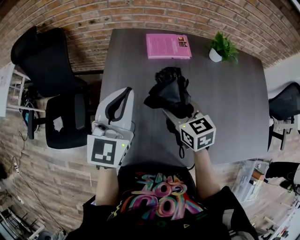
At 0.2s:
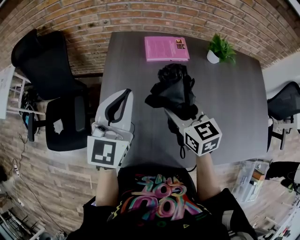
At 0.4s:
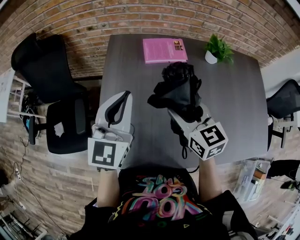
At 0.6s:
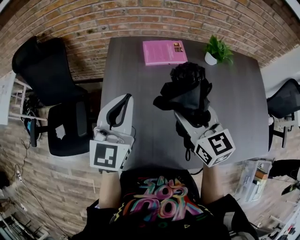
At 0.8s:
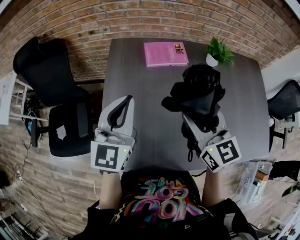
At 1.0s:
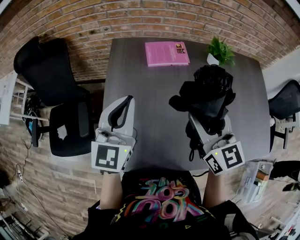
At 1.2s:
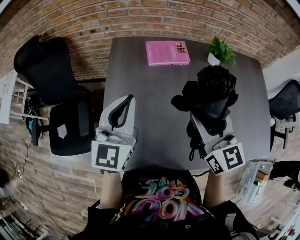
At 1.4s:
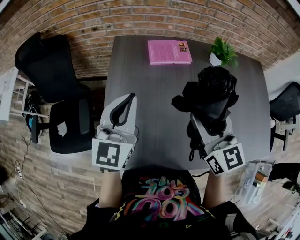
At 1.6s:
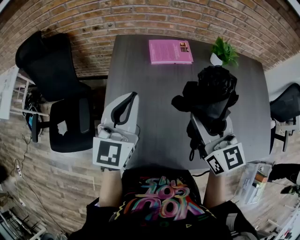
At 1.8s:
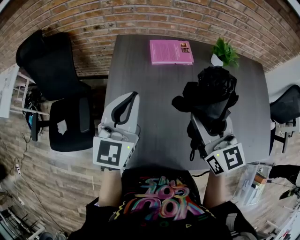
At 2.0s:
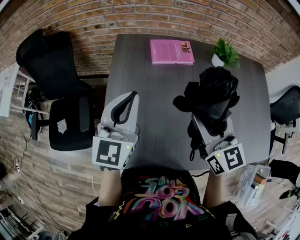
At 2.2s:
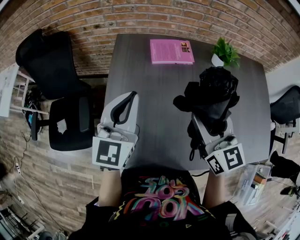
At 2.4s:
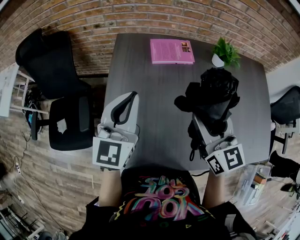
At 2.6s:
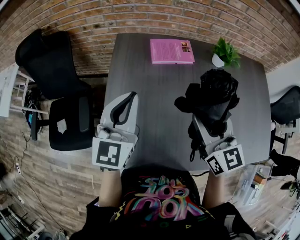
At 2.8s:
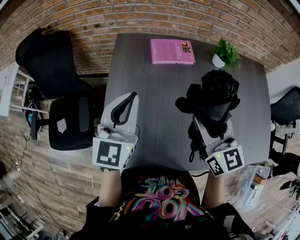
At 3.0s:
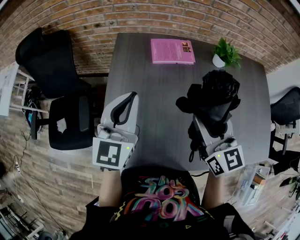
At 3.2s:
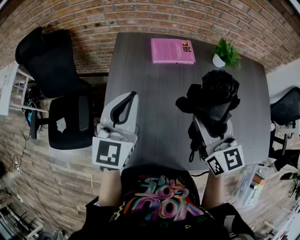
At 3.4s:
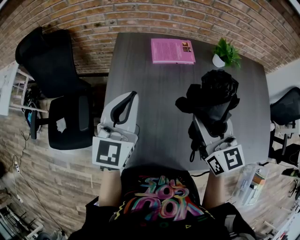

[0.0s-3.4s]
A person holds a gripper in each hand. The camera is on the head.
0.0s to 1.6s: The right gripper moves upward and to the right, roughly 15 cm, and rotates about 30 degrees.
1.6s to 3.4s: The grippers make only small movements.

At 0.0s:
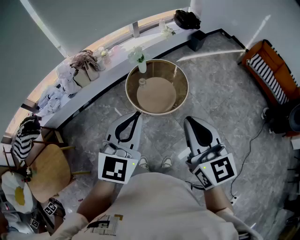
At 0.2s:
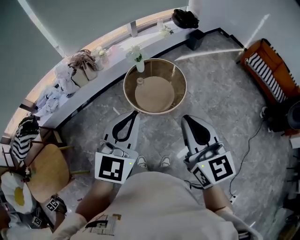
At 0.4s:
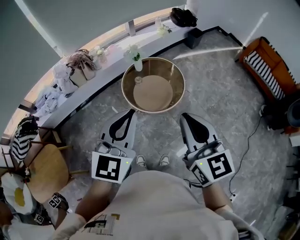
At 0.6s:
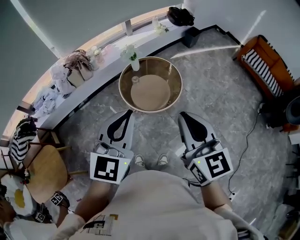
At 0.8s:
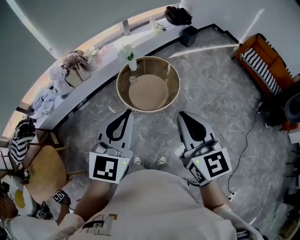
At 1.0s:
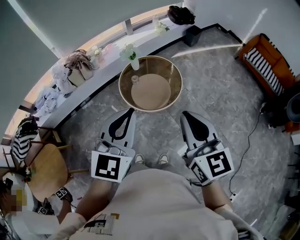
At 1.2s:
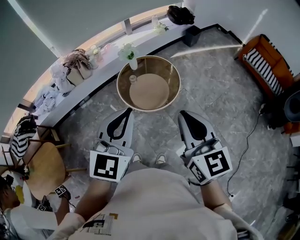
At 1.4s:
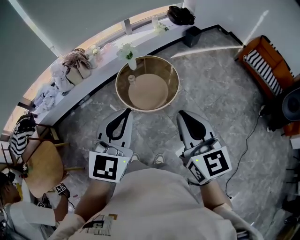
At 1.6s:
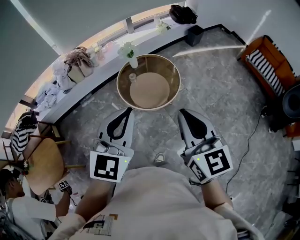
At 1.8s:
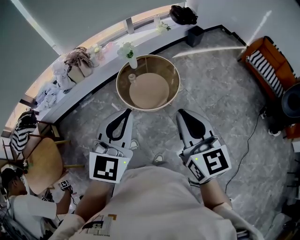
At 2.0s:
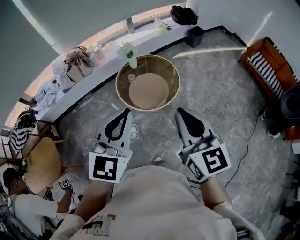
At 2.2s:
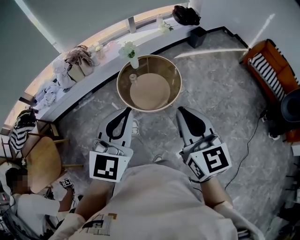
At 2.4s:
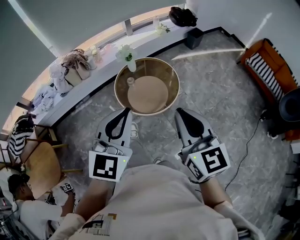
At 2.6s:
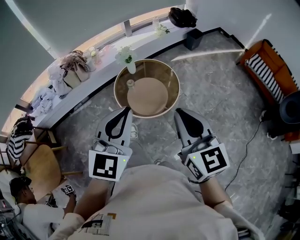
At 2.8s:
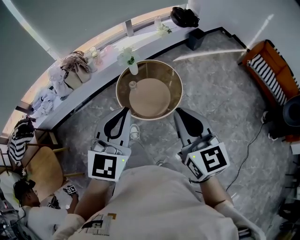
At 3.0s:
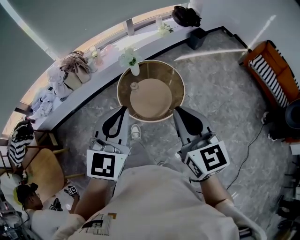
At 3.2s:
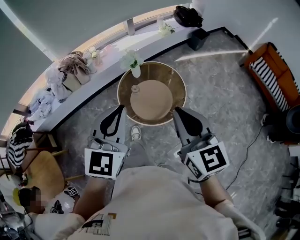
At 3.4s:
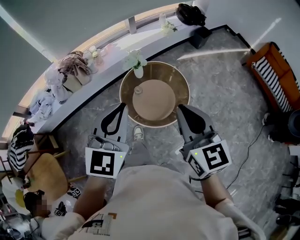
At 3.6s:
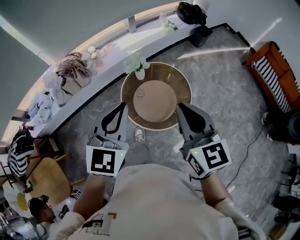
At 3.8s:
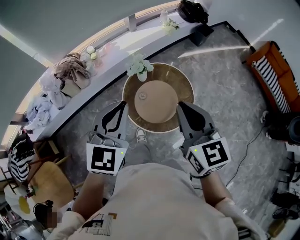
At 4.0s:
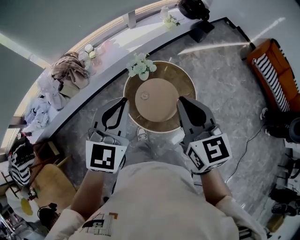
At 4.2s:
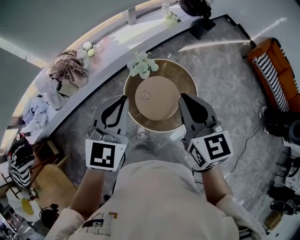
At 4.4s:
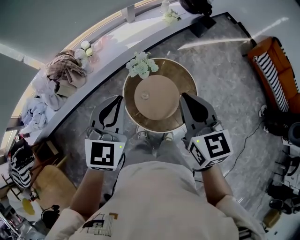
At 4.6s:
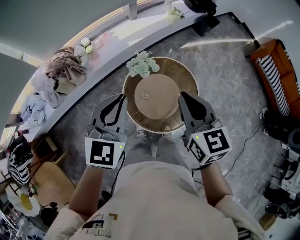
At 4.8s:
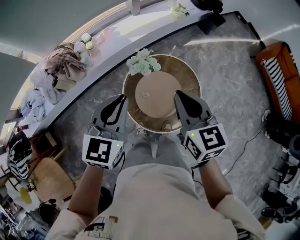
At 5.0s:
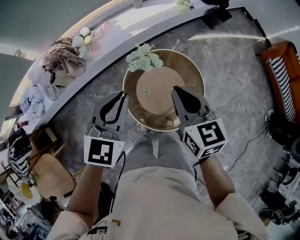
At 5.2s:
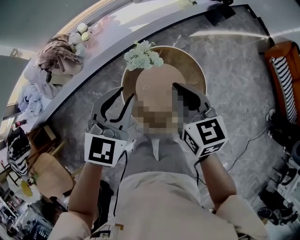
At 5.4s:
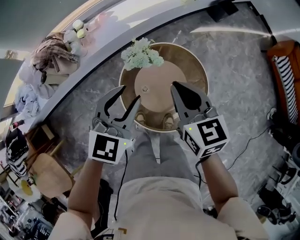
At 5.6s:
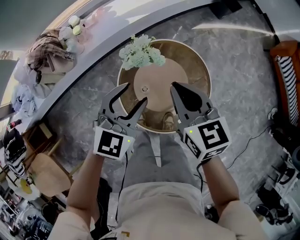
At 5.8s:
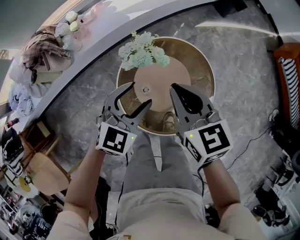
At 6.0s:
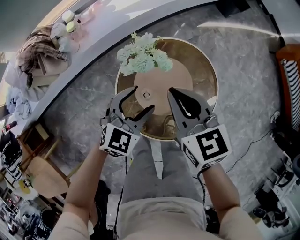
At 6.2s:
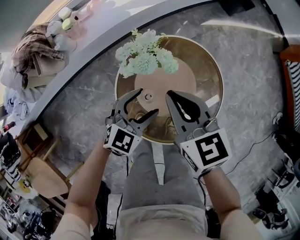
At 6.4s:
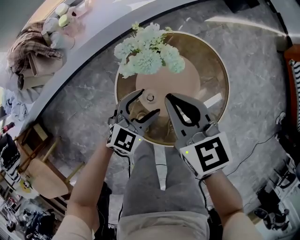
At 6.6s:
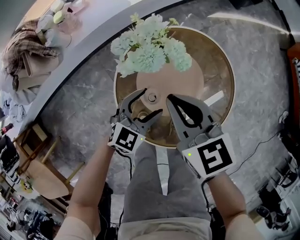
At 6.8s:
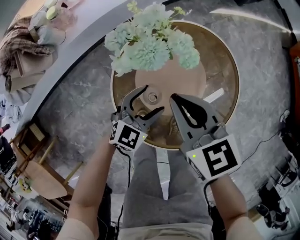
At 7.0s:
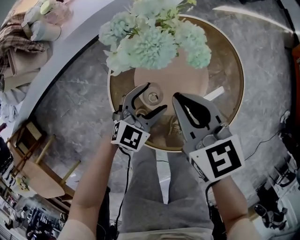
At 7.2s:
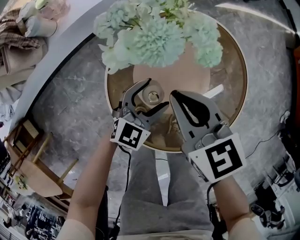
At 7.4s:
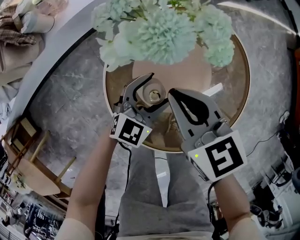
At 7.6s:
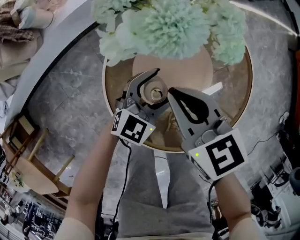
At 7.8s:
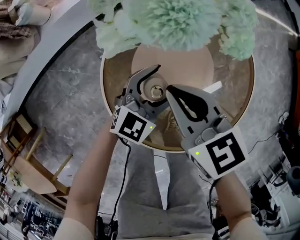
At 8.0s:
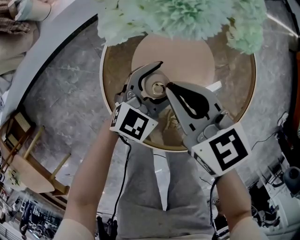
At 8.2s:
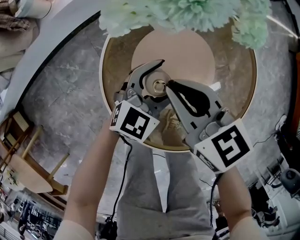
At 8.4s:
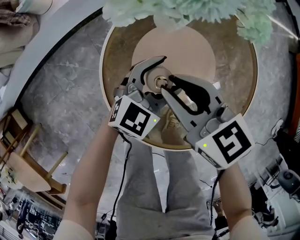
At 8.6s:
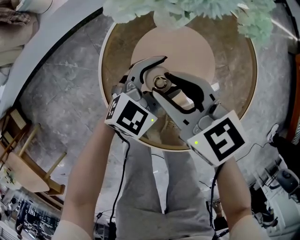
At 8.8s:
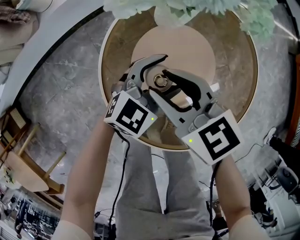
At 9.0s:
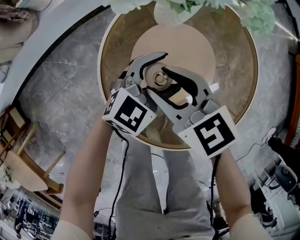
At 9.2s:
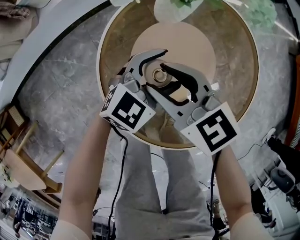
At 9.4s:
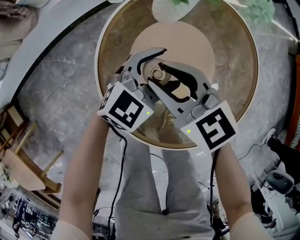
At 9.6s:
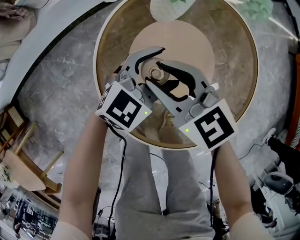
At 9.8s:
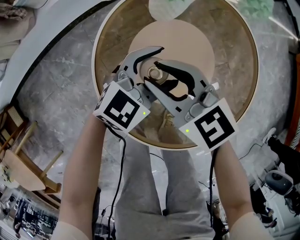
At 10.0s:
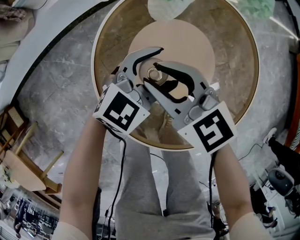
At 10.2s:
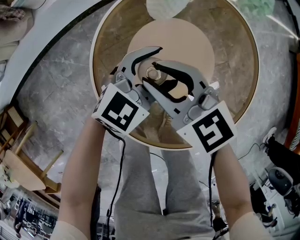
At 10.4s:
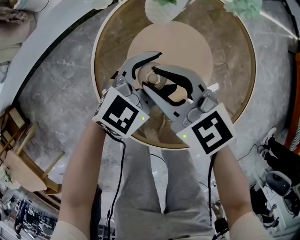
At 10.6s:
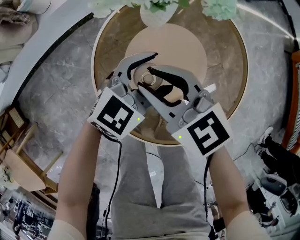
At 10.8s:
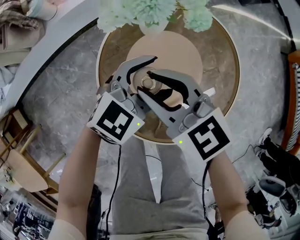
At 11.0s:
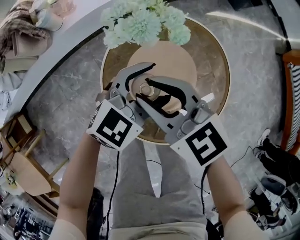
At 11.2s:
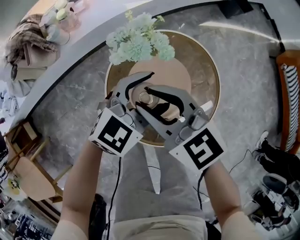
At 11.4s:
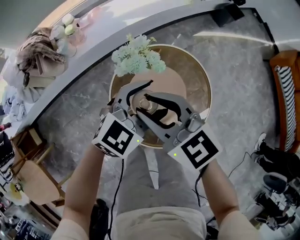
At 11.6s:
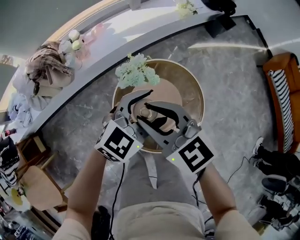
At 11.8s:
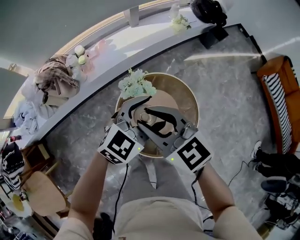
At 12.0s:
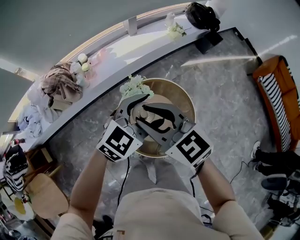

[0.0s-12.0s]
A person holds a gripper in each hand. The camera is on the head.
0.0s to 1.6s: Both grippers move to the right, roughly 10 cm.
1.6s to 3.0s: The two grippers go approximately 15 cm forward.
3.0s to 4.4s: The grippers both shift forward and to the left by some 35 cm.
4.4s to 6.0s: The left gripper travels downward by roughly 35 cm, rotates some 20 degrees, and opens, while the right gripper travels downward and forward by approximately 30 cm, and swivels about 20 degrees.
6.0s to 7.6s: The grippers both shift downward by about 25 cm.
7.6s to 9.0s: The right gripper goes approximately 5 cm downward, and opens its fingers.
9.0s to 10.4s: The grippers move only a little.
10.4s to 12.0s: Both grippers travel together upward, roughly 50 cm.

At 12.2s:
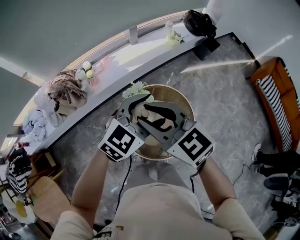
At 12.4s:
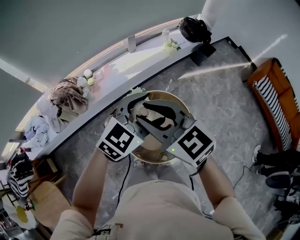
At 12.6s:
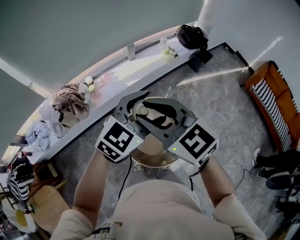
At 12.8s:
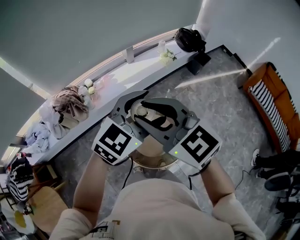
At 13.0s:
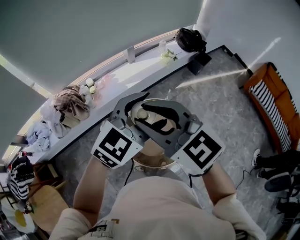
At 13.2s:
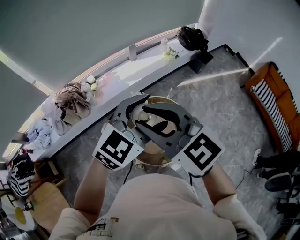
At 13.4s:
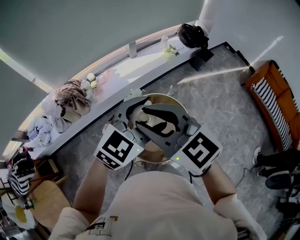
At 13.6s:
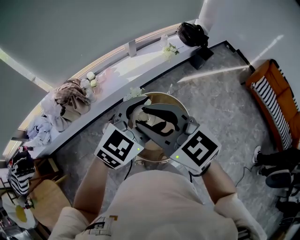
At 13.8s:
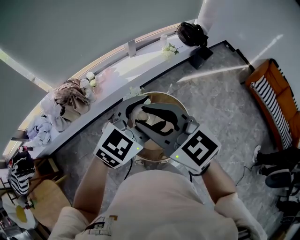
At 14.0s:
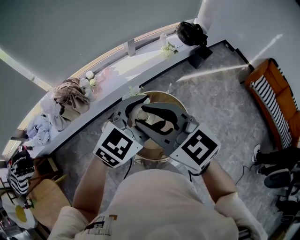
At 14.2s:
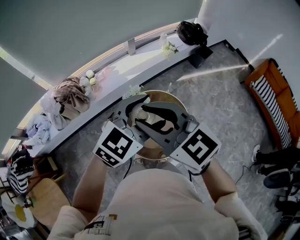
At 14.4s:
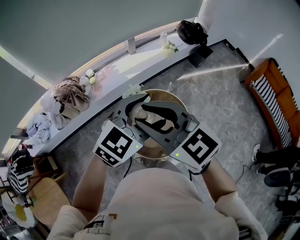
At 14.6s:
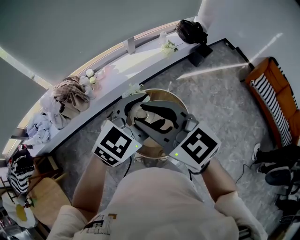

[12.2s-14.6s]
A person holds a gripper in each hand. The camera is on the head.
12.2s to 13.4s: Both grippers move upward and backward, approximately 15 cm.
13.4s to 14.6s: The two grippers keep their place.

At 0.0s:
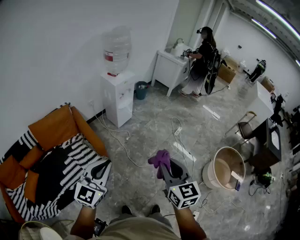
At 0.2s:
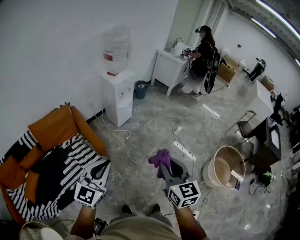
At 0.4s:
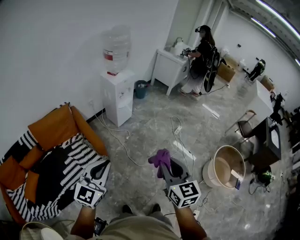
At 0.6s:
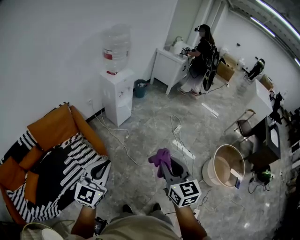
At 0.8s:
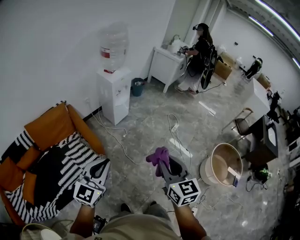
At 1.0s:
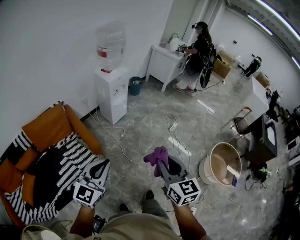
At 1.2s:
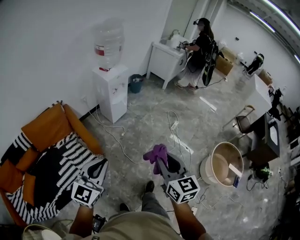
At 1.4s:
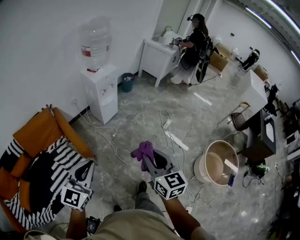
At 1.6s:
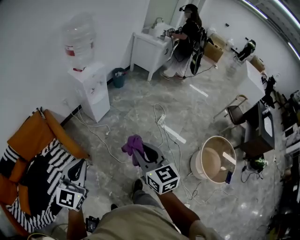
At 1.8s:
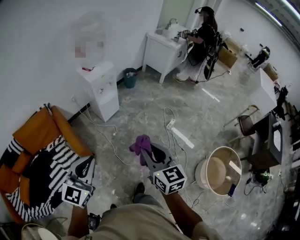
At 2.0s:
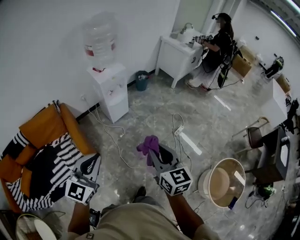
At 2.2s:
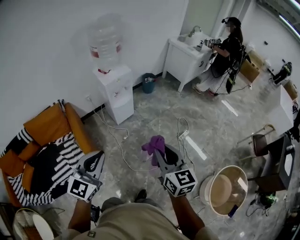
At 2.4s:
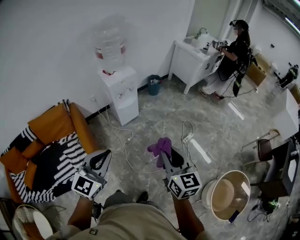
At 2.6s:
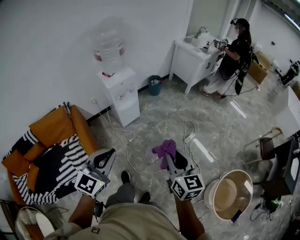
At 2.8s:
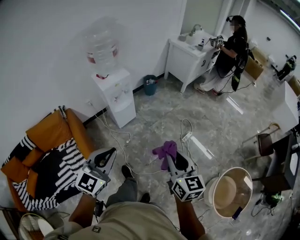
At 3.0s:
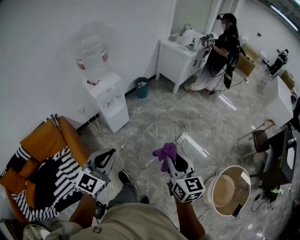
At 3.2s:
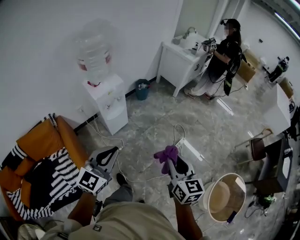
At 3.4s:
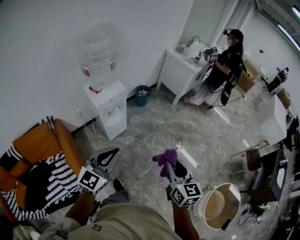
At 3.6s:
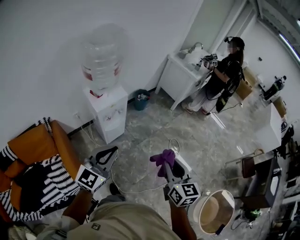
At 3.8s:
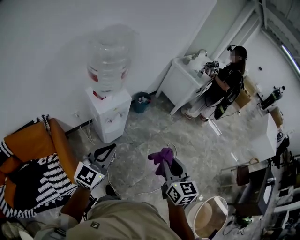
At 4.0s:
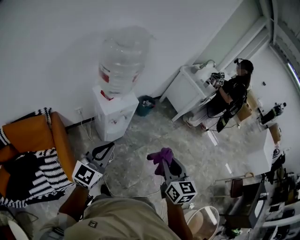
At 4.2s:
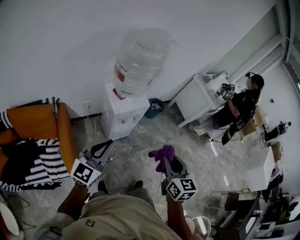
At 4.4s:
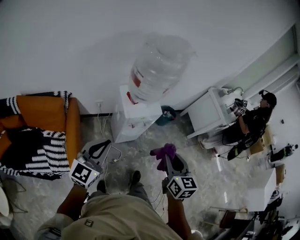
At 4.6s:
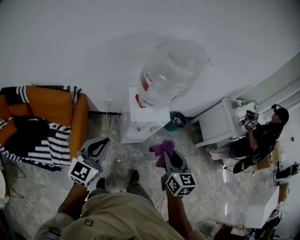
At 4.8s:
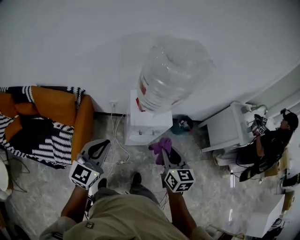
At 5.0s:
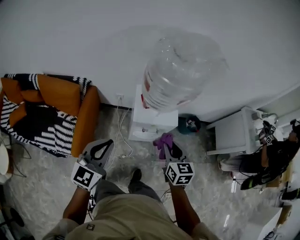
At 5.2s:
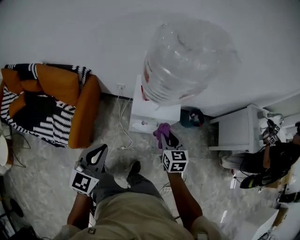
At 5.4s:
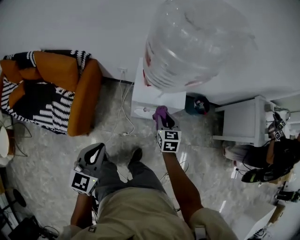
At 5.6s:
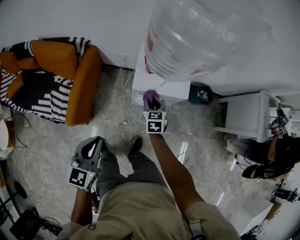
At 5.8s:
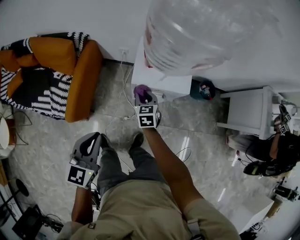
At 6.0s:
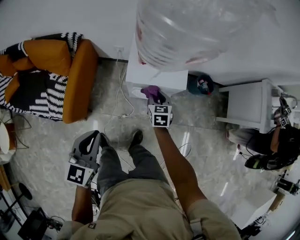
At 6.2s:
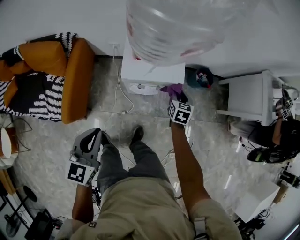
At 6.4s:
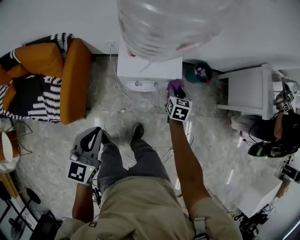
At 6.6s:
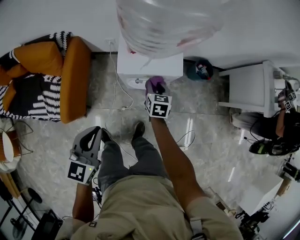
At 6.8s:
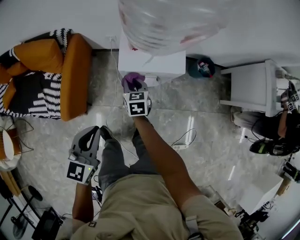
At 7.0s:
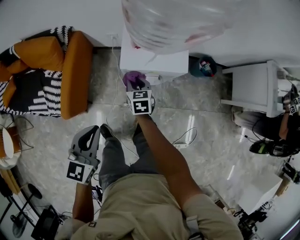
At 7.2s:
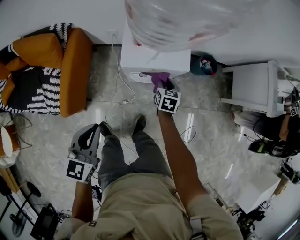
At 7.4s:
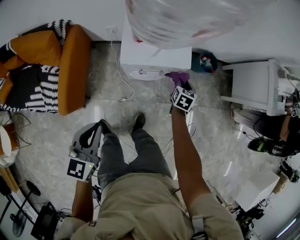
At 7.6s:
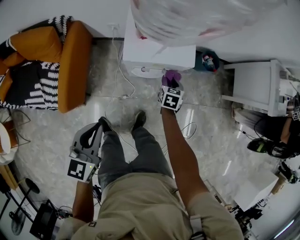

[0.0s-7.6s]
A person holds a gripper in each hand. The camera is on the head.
0.0s to 1.6s: The left gripper moves forward and to the right, approximately 15 cm, while the right gripper moves forward, some 20 cm.
1.6s to 3.0s: The grippers both shift forward and to the right by some 25 cm.
3.0s to 4.6s: The pair of grippers is taken approximately 50 cm. The right gripper turns by approximately 30 degrees. Meanwhile the left gripper changes its angle by approximately 40 degrees.
4.6s to 6.0s: The left gripper heads downward and to the right, covering approximately 20 cm, and changes its angle by about 30 degrees. Meanwhile the right gripper is displaced downward and forward by some 40 cm, and changes its angle by some 30 degrees.
6.0s to 7.6s: The left gripper shifts some 5 cm downward. The right gripper moves left and right over approximately 25 cm, changing direction 3 times.
